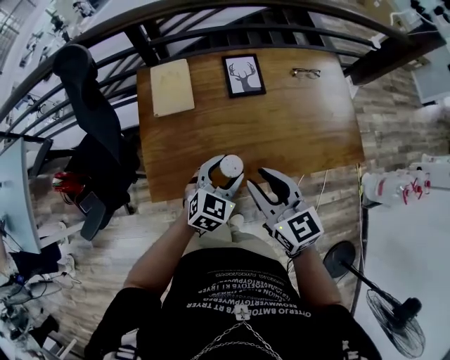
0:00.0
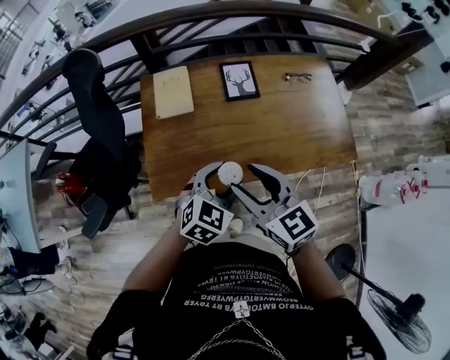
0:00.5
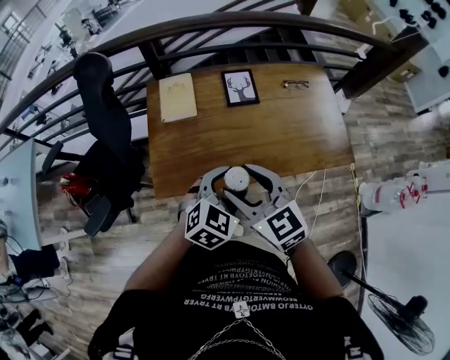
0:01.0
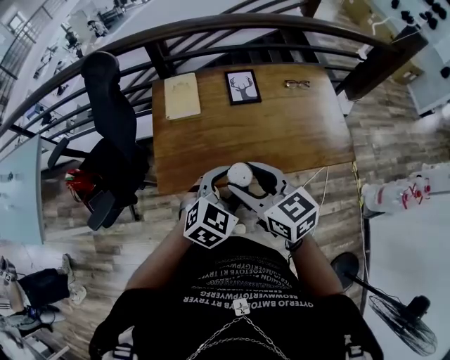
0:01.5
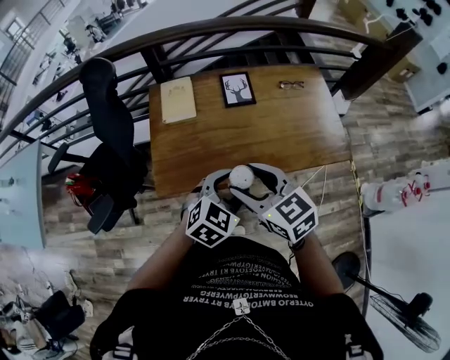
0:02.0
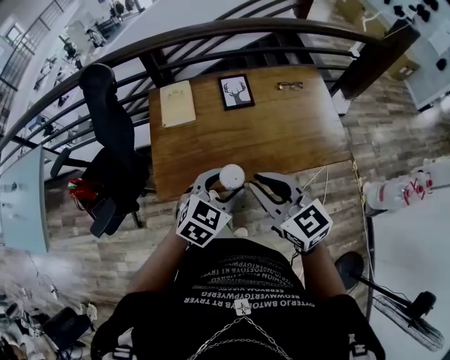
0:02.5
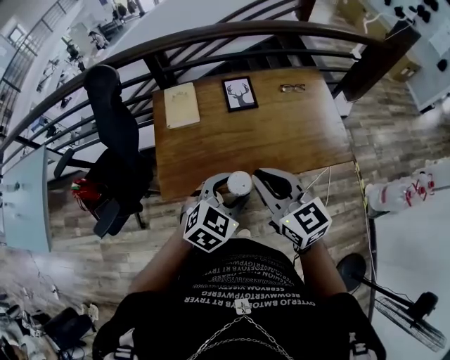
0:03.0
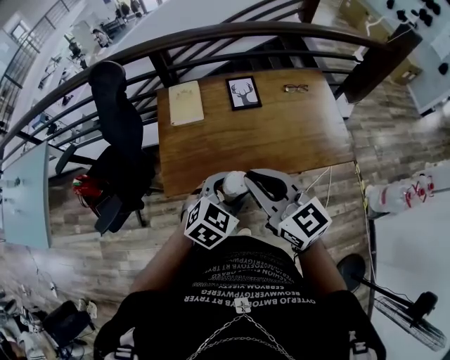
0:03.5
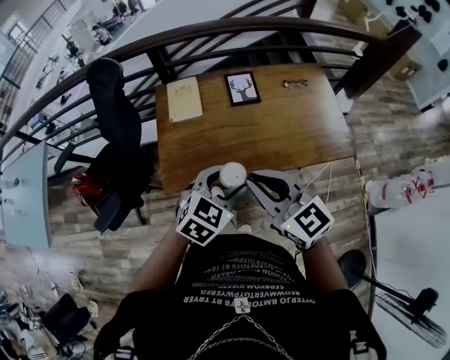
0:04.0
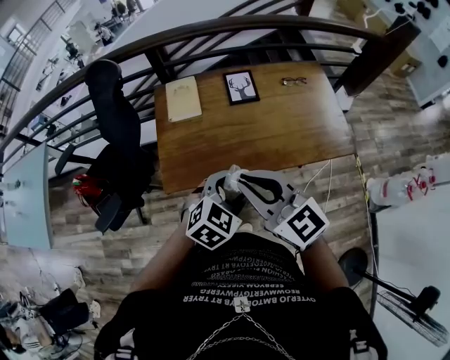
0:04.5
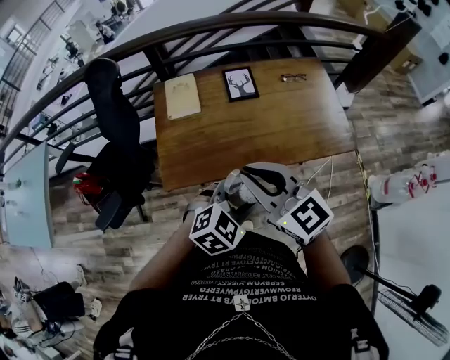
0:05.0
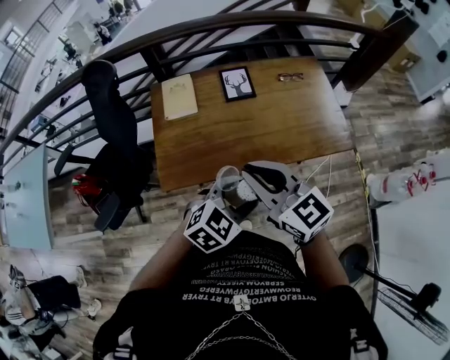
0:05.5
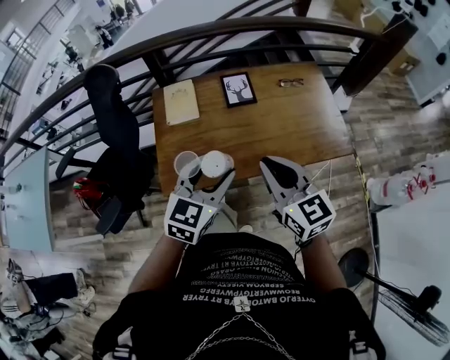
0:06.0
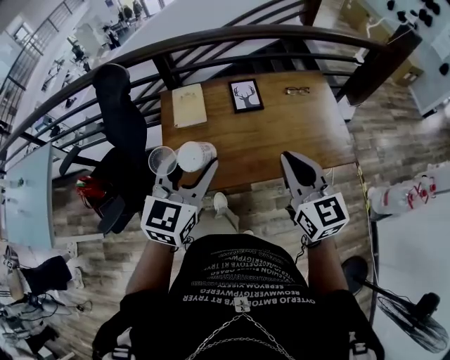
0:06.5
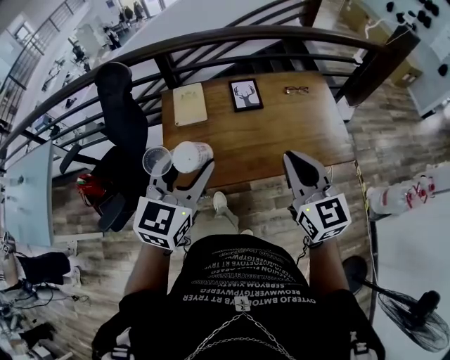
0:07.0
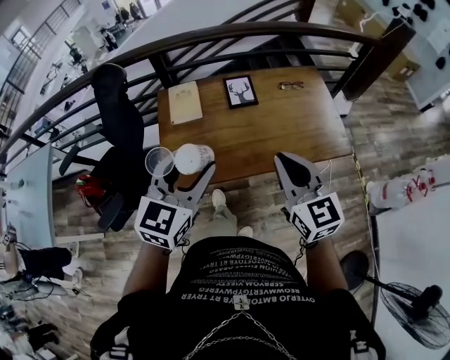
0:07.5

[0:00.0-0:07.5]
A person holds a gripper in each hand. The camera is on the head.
0:00.0 to 0:02.0: The right gripper moves backward and upward, about 10 cm, and opens its fingers. Meanwhile the left gripper travels upward and backward by about 15 cm.
0:02.0 to 0:04.0: The right gripper goes approximately 5 cm upward, and closes its fingers.
0:04.0 to 0:05.5: The left gripper shifts about 5 cm to the right.
0:05.5 to 0:07.5: The left gripper shifts roughly 20 cm upward and to the left, and turns by about 30 degrees. The right gripper travels to the right by about 5 cm, and rotates approximately 20 degrees.

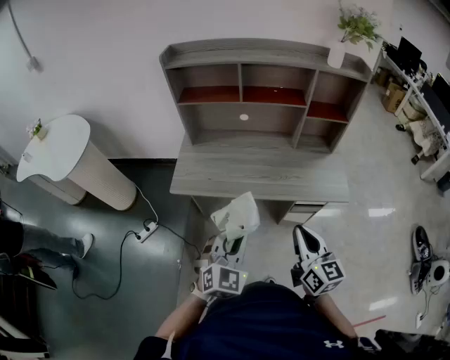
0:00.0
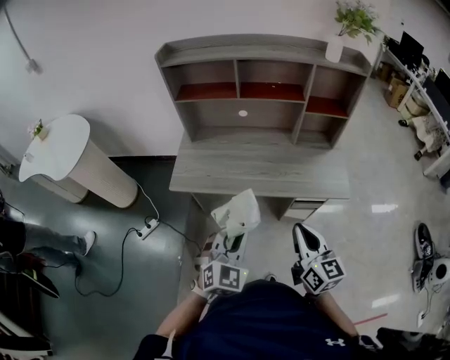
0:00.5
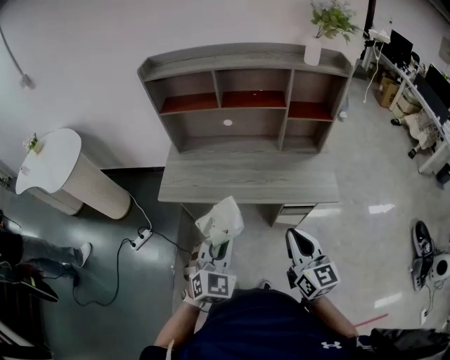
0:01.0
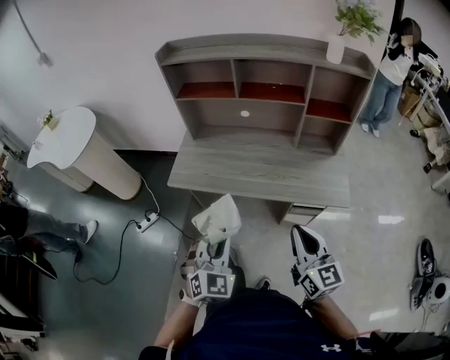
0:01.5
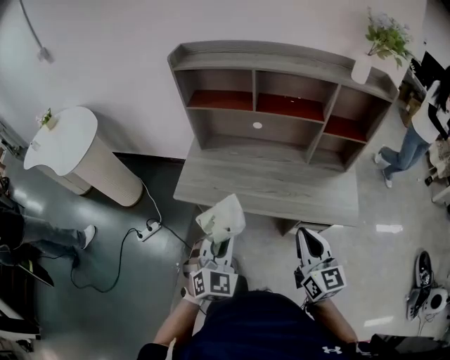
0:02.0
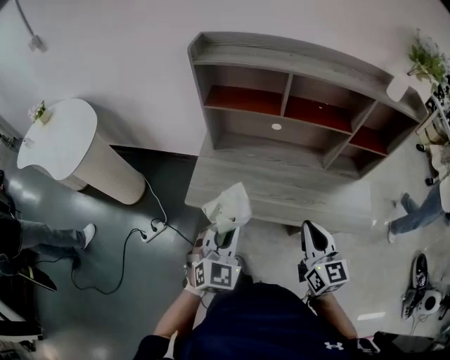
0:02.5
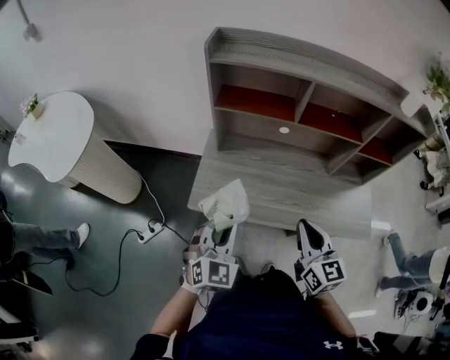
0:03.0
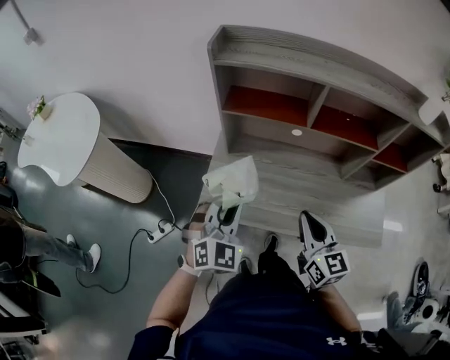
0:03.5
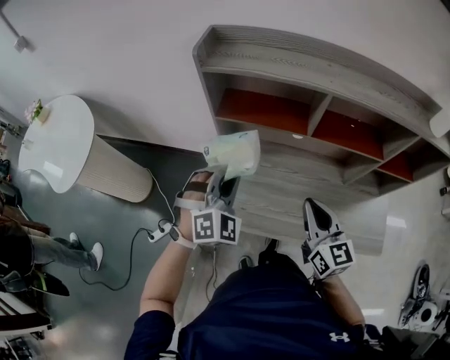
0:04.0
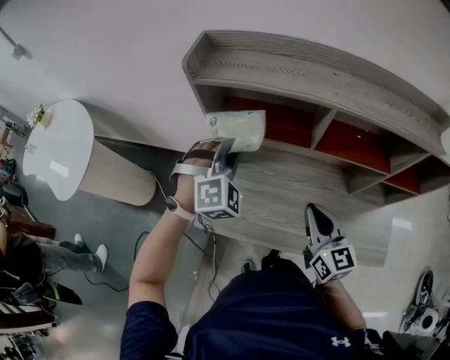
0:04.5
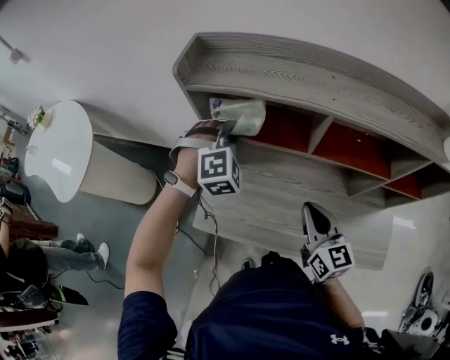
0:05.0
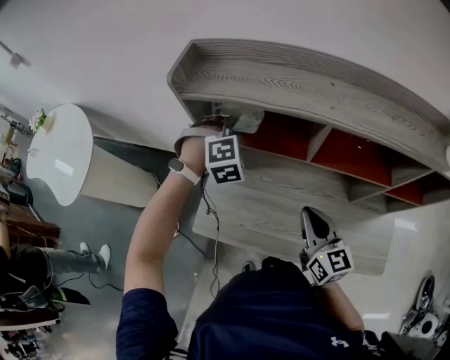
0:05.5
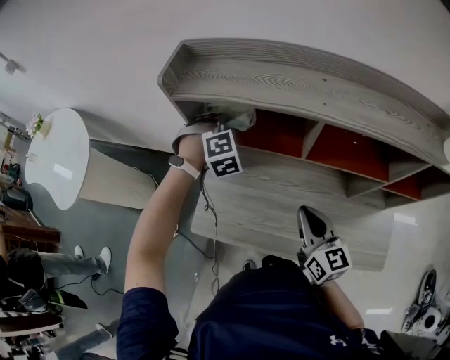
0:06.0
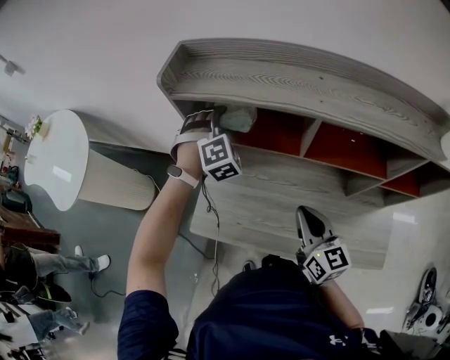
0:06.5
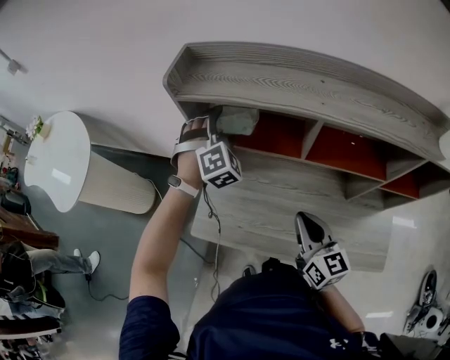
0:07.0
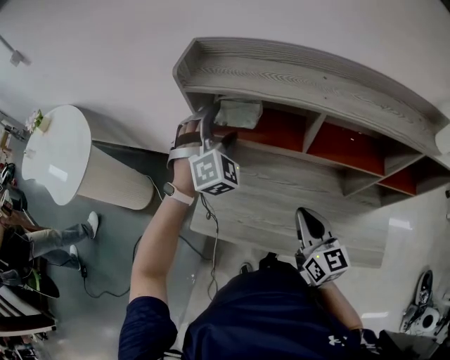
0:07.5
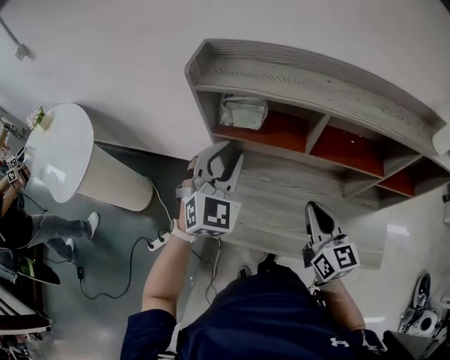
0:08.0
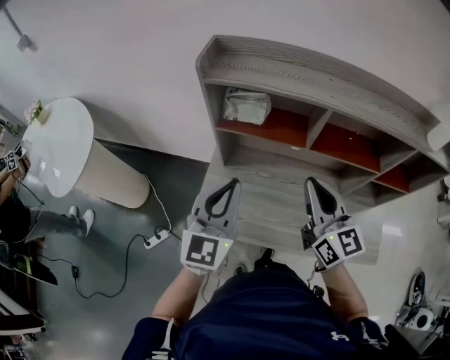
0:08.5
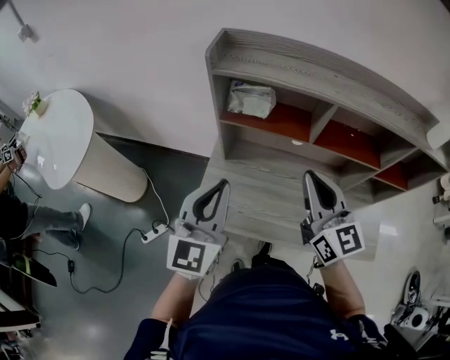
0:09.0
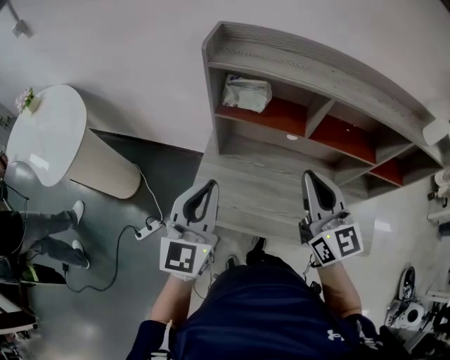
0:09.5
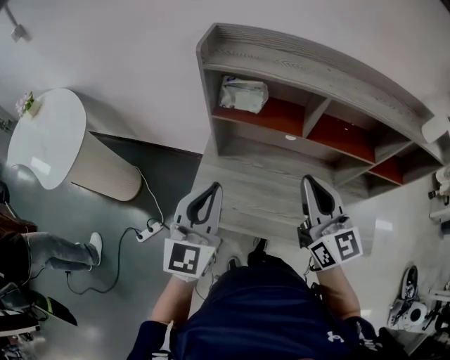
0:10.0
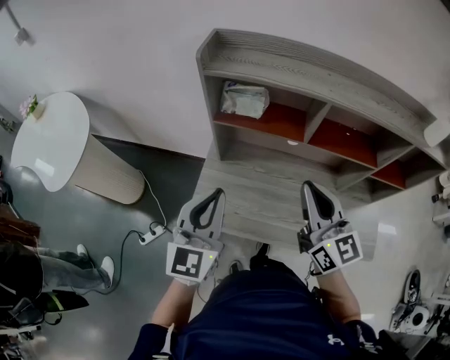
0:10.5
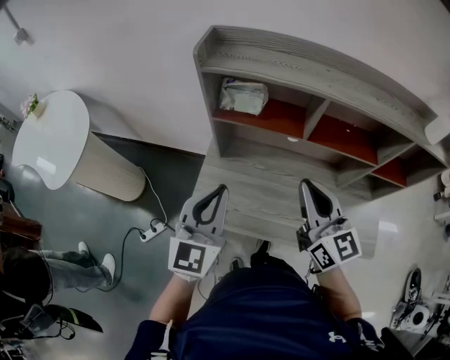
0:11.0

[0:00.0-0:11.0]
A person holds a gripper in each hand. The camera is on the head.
0:00.0 to 0:02.0: Both grippers travel together forward, about 10 cm.
0:02.0 to 0:03.5: The grippers both shift forward and to the left by roughly 25 cm.
0:03.5 to 0:05.5: The right gripper is displaced forward by approximately 15 cm, while the left gripper heads forward, covering some 35 cm, and rotates roughly 40 degrees.
0:05.5 to 0:07.5: The left gripper moves upward, approximately 5 cm, rotates about 30 degrees, and opens.
0:07.5 to 0:09.0: The right gripper is displaced upward by about 15 cm. The left gripper moves backward, some 25 cm, twists about 60 degrees counterclockwise, seen from behind, and closes.
0:09.0 to 0:11.0: There are only small adjustments of the grippers.

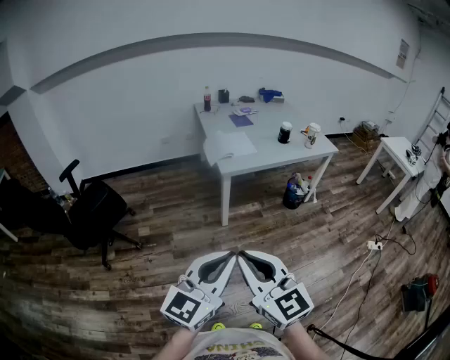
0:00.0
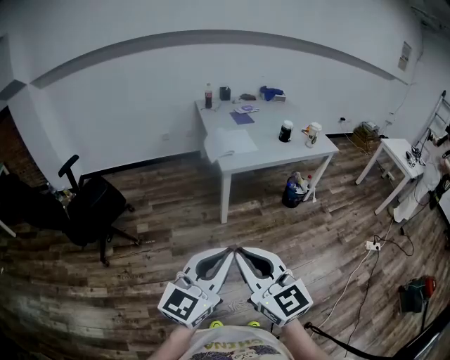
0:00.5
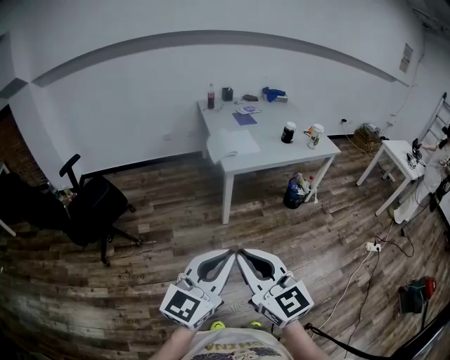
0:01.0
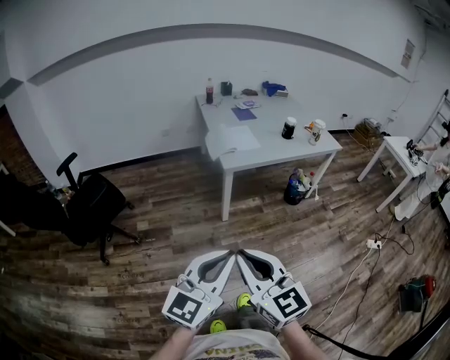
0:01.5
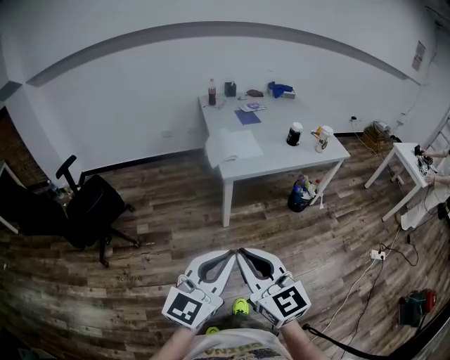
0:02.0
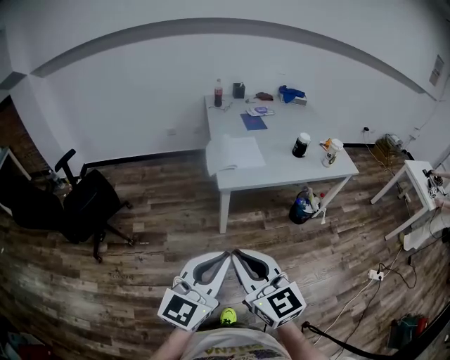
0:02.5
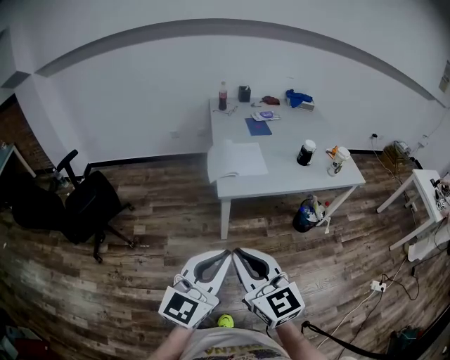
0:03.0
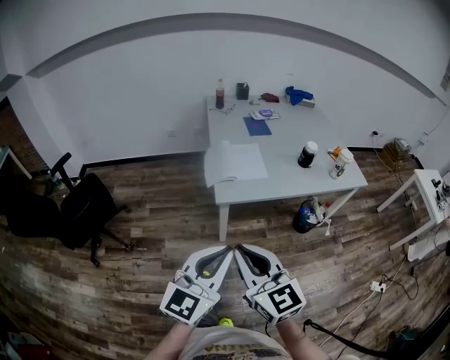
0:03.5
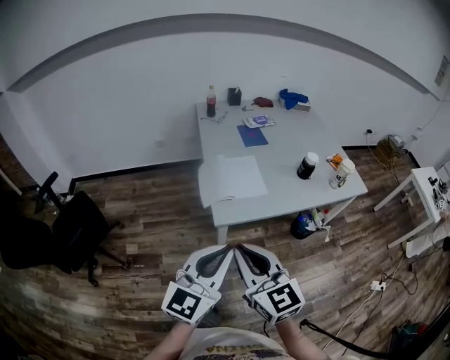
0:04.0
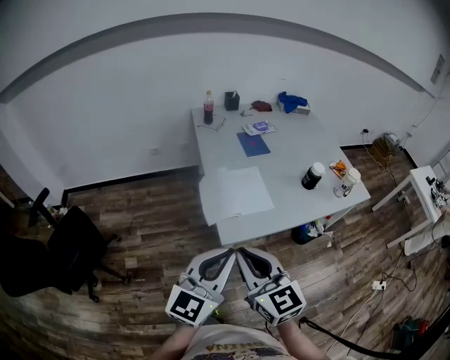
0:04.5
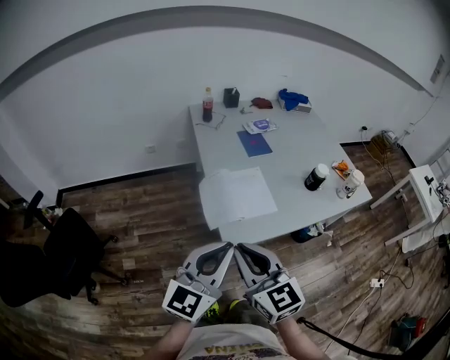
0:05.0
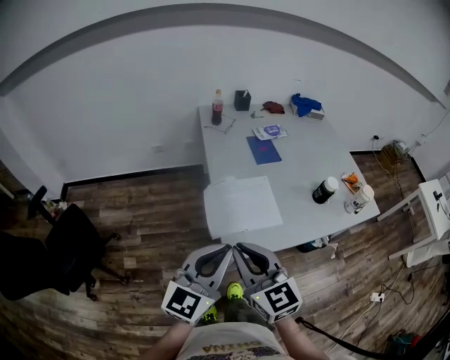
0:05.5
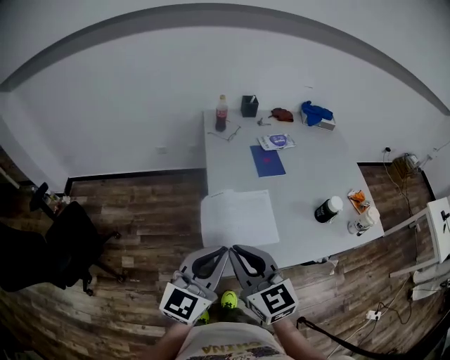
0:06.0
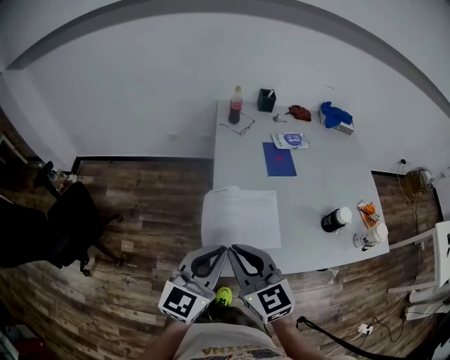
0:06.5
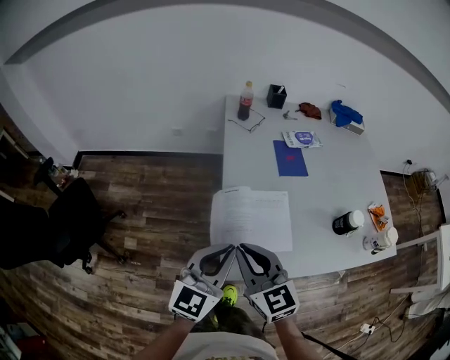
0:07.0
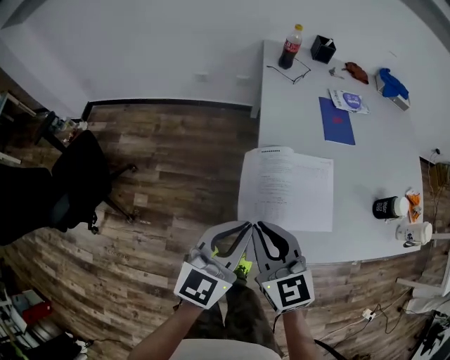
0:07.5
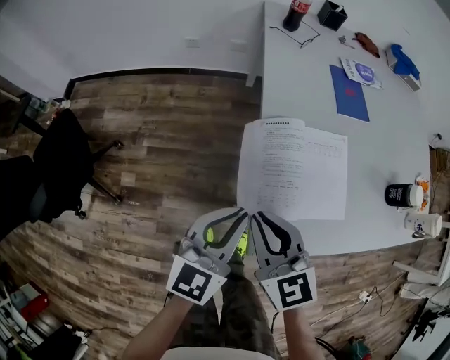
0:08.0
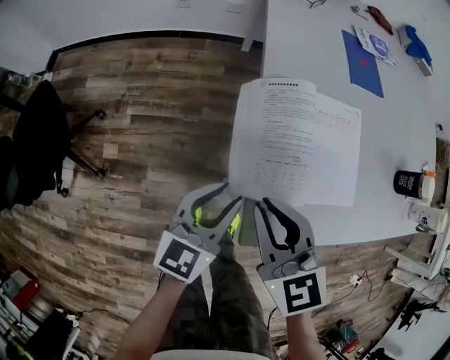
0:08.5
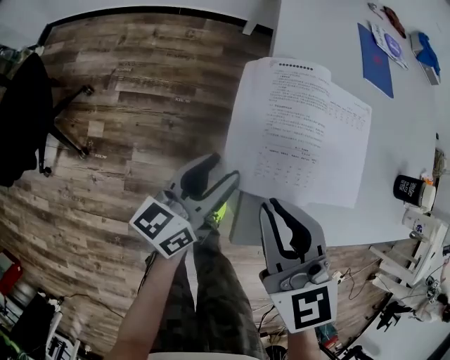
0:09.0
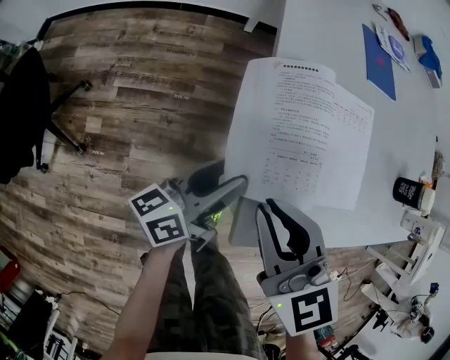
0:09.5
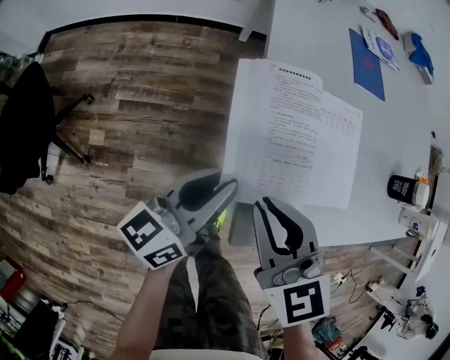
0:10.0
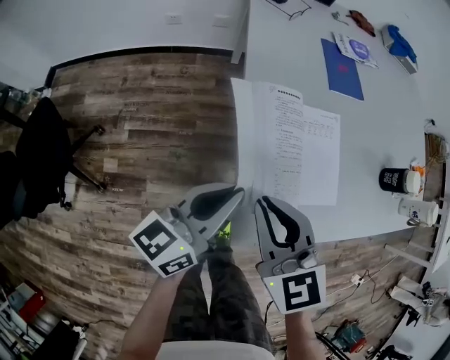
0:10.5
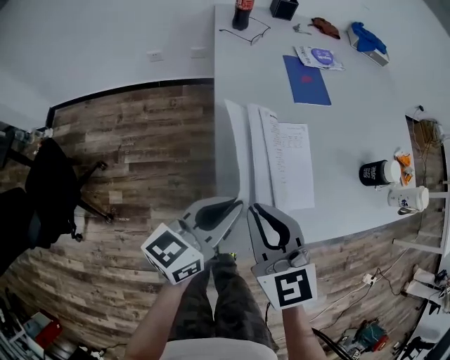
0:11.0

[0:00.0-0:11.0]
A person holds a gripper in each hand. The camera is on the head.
0:00.0 to 0:02.0: The grippers both shift forward by some 15 cm.
0:02.0 to 0:03.5: The two grippers go about 25 cm forward.
0:03.5 to 0:05.5: The grippers both shift forward by about 35 cm.
0:05.5 to 0:07.5: The two grippers go some 25 cm downward and forward.
0:07.5 to 0:09.0: The right gripper moves downward, some 15 cm; the left gripper shifts some 25 cm downward, twists approximately 40 degrees counterclockwise, seen from behind, and opens.
0:09.0 to 0:11.0: The left gripper moves upward and to the right, some 20 cm, changes its angle by about 30 degrees, and closes up; the right gripper goes about 10 cm upward.
